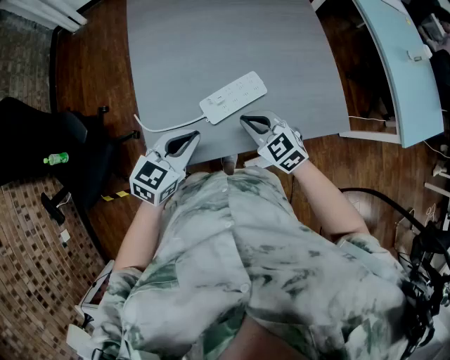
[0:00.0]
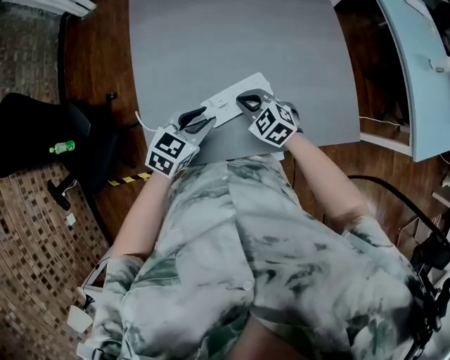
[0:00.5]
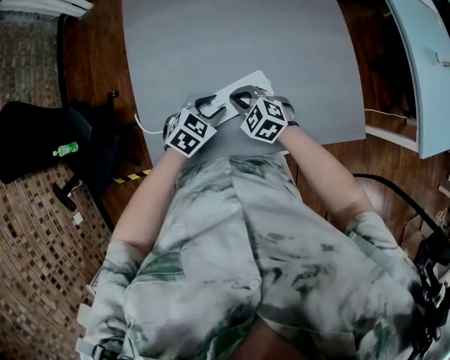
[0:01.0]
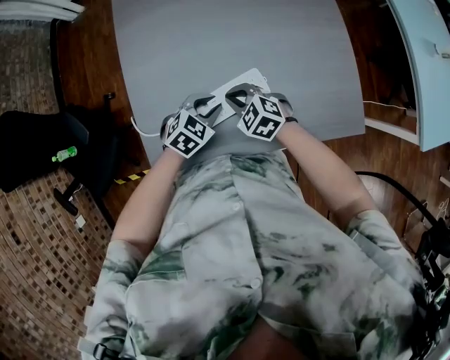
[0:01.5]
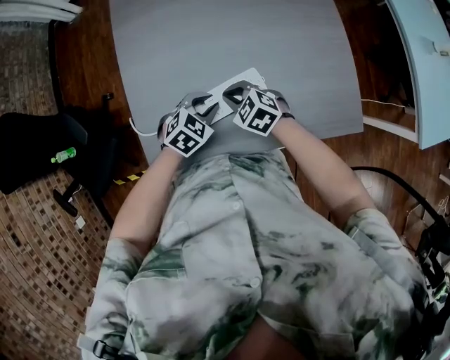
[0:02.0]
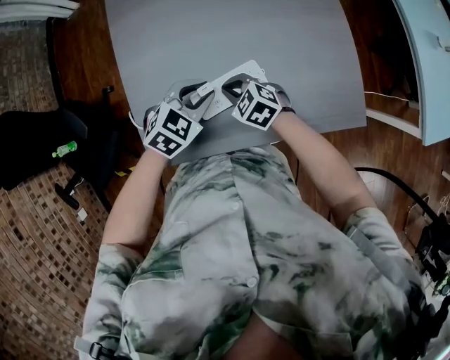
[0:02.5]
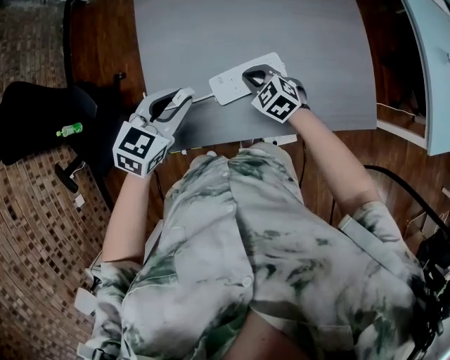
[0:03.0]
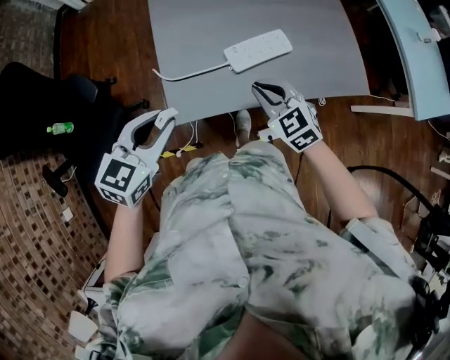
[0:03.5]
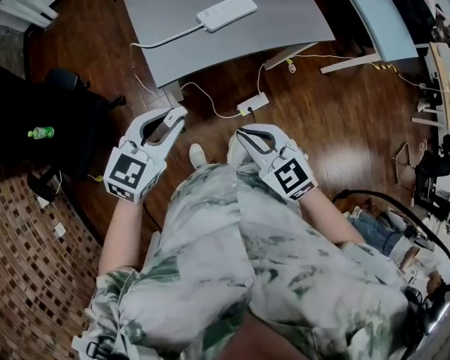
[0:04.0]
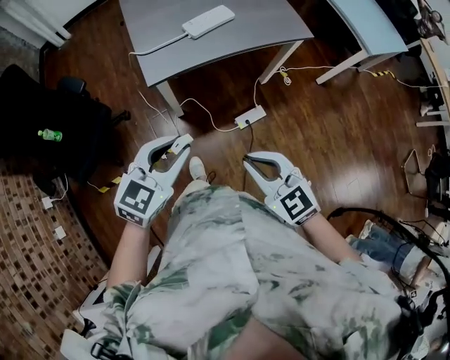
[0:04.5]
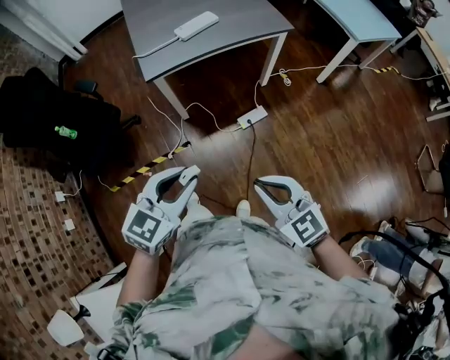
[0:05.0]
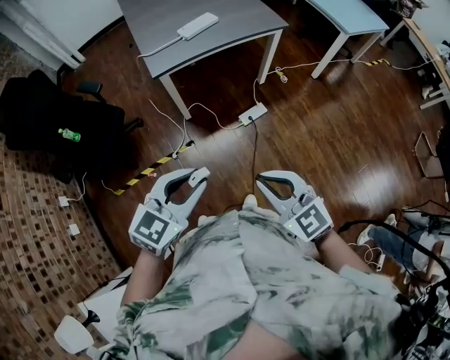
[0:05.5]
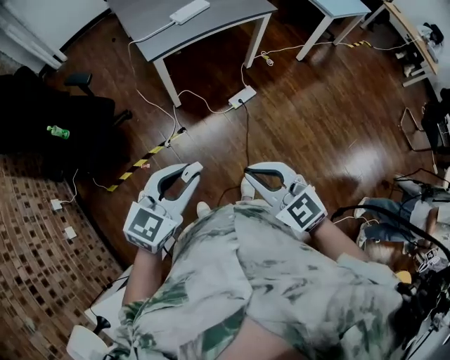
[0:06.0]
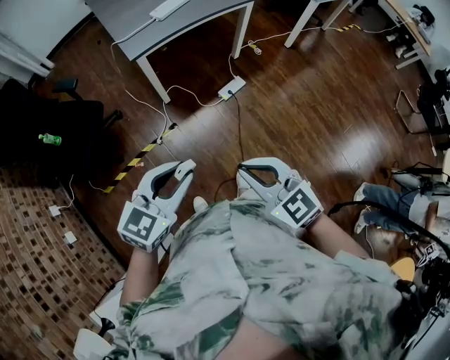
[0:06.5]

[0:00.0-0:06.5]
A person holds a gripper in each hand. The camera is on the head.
0:00.0 to 0:02.0: The left gripper is displaced downward, forward and to the right by approximately 20 cm, turns by some 30 degrees, and opens up, while the right gripper goes some 15 cm downward and forward.
0:02.0 to 0:04.5: The pair of grippers is taken backward, some 50 cm. The grippers both shift upward by roughly 25 cm. The right gripper turns by some 30 degrees. Meanwhile the left gripper angles its fingers upward, by some 30 degrees.
0:04.5 to 0:06.5: Both grippers move backward, some 25 cm.

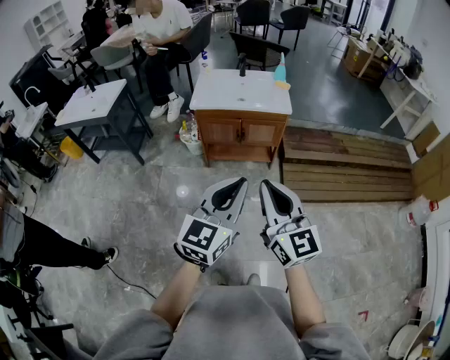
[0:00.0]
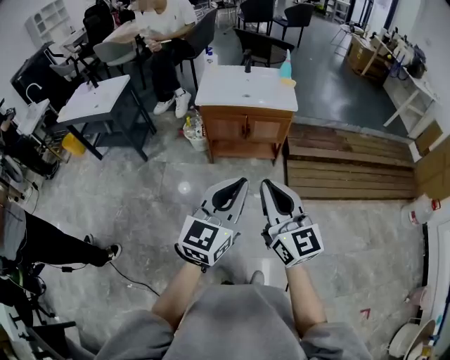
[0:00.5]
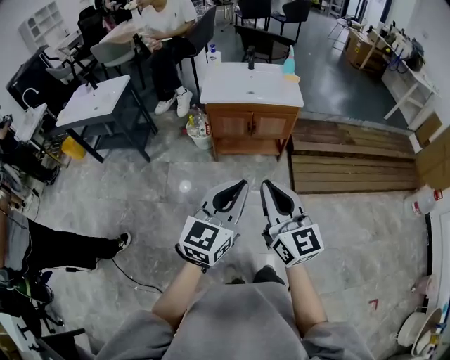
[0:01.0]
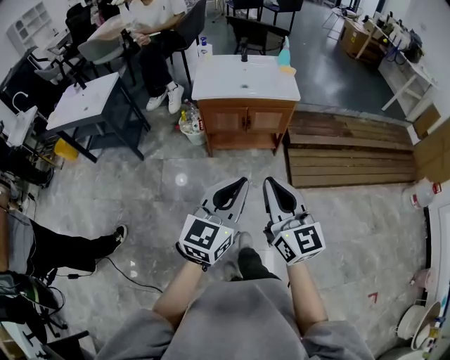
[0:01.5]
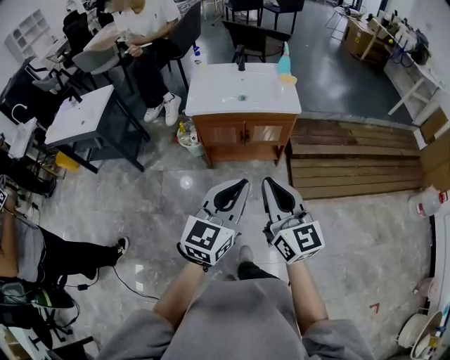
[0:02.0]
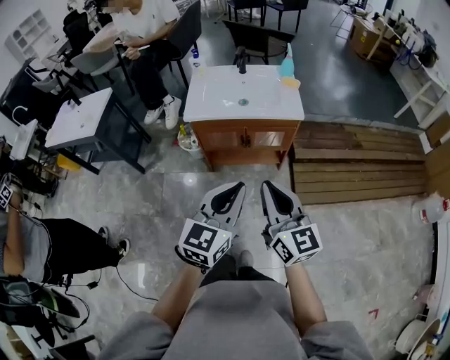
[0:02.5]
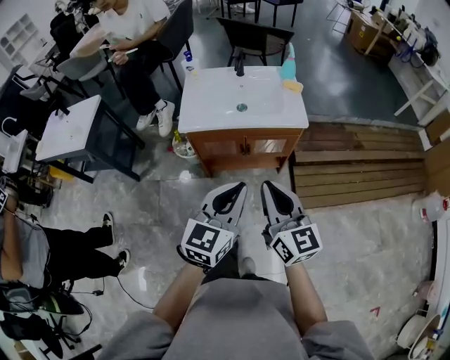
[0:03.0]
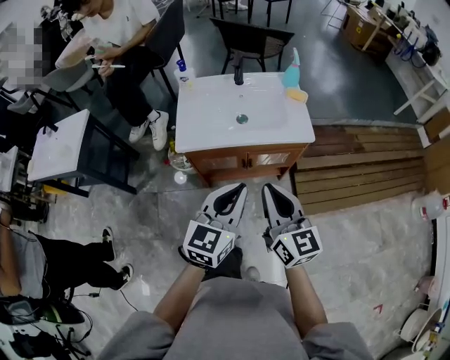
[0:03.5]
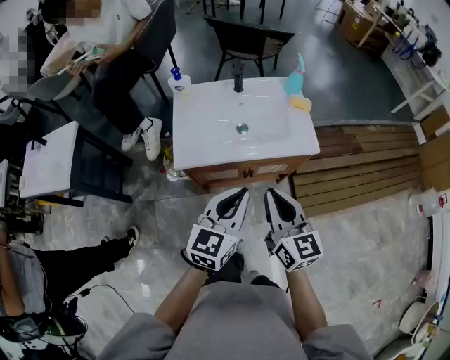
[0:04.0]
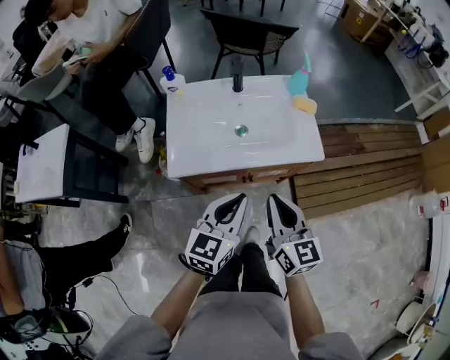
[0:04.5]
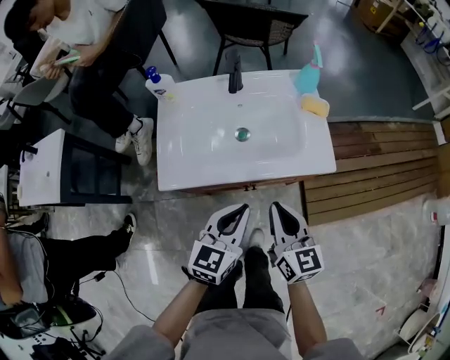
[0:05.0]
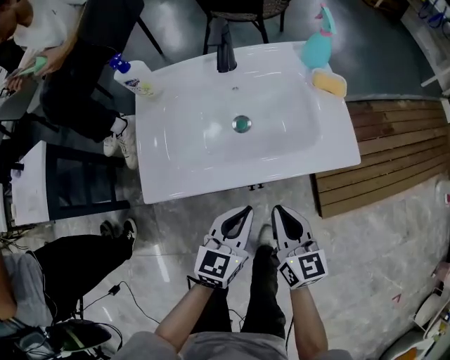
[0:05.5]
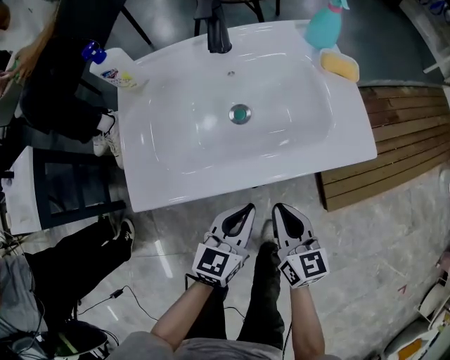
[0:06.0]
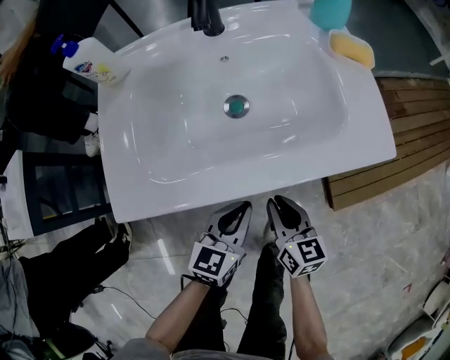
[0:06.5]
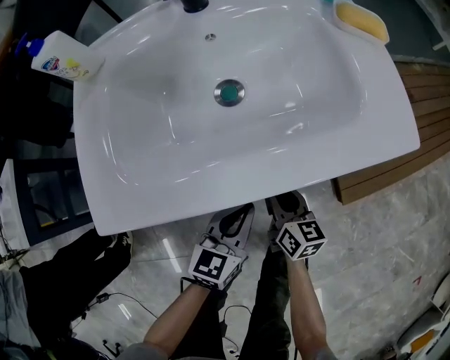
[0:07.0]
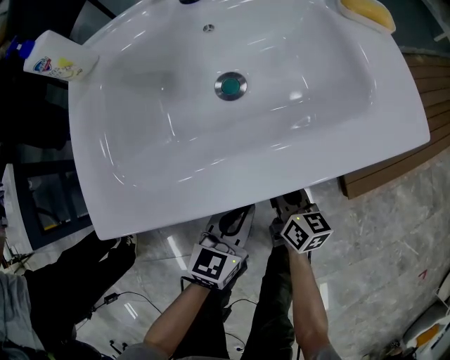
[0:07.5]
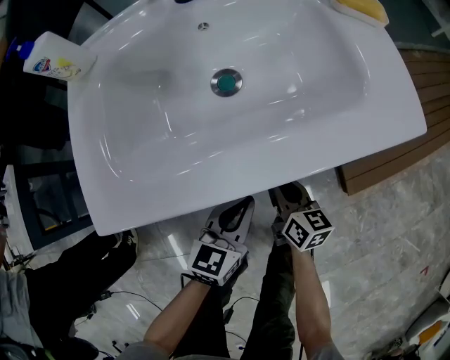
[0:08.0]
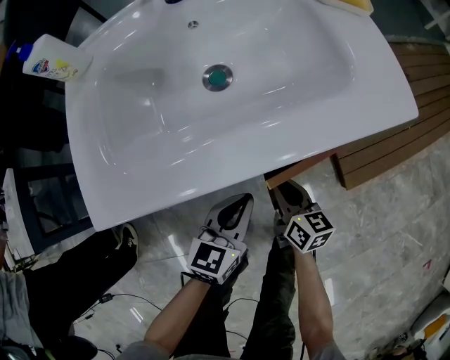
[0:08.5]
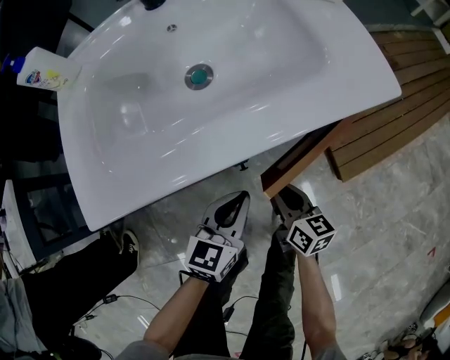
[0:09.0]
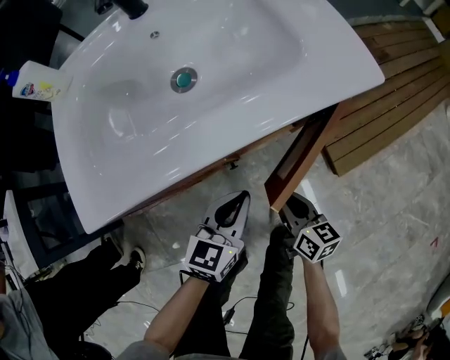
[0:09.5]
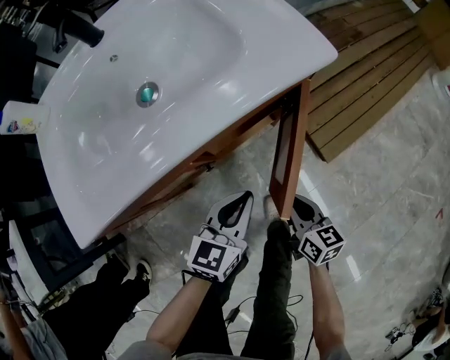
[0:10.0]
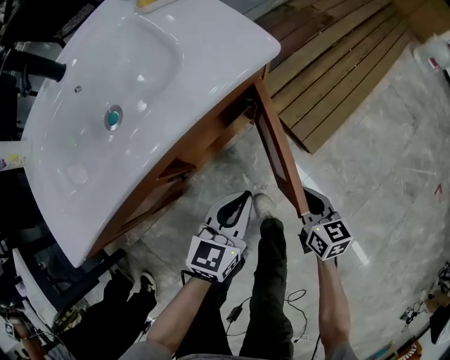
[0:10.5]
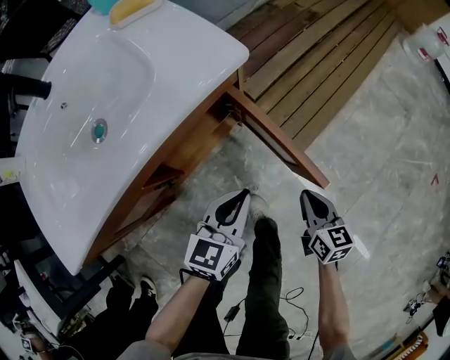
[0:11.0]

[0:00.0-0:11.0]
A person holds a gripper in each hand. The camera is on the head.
0:00.0 to 0:02.0: Both grippers move forward, about 15 cm.
0:02.0 to 0:03.5: The grippers both shift forward by approximately 25 cm.
0:03.5 to 0:05.5: Both grippers move downward and forward, some 35 cm.
0:05.5 to 0:07.5: The two grippers go approximately 25 cm downward. The right gripper changes its angle by about 20 degrees.
0:07.5 to 0:09.0: The right gripper goes roughly 5 cm backward.
0:09.0 to 0:11.0: The left gripper ends up roughly 20 cm from where it was, and swivels approximately 20 degrees. The right gripper shifts by about 30 cm, and turns by roughly 30 degrees.

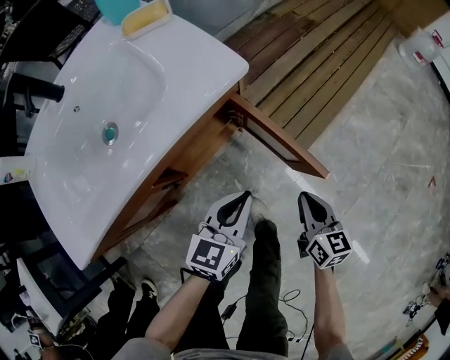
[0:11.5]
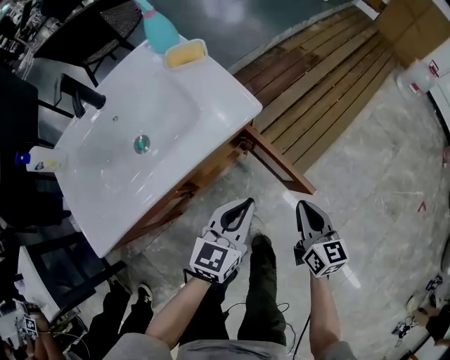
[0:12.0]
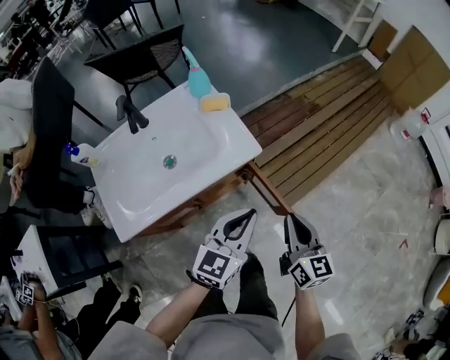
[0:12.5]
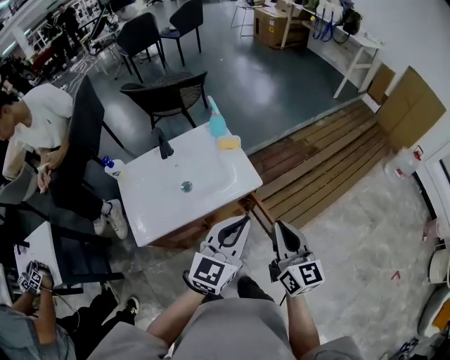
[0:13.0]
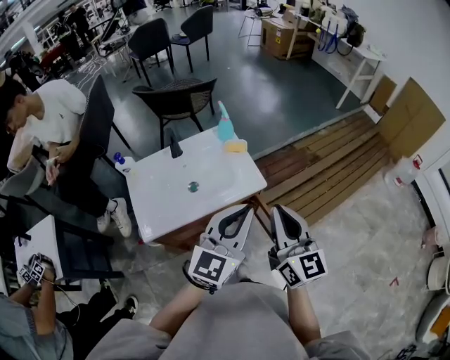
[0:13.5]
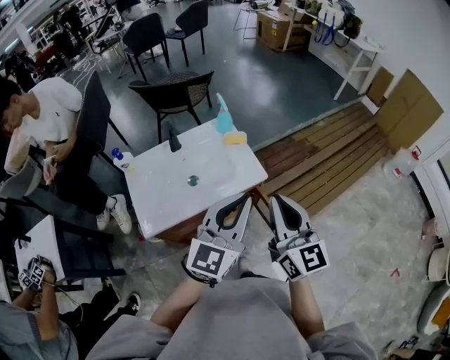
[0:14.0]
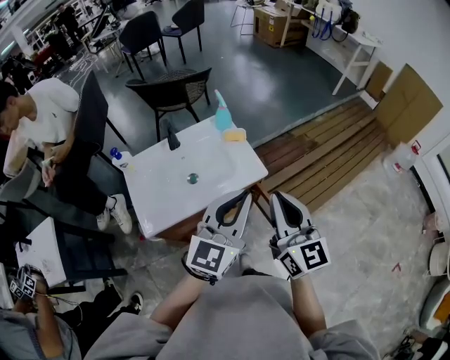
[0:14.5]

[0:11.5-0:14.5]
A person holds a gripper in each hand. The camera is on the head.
0:11.5 to 0:13.0: The grippers both shift upward by approximately 50 cm. The left gripper swivels about 30 degrees. Meanwhile the right gripper turns by roughly 30 degrees.
0:13.0 to 0:14.5: The left gripper goes approximately 10 cm upward, while the right gripper is displaced upward and to the left by roughly 10 cm.

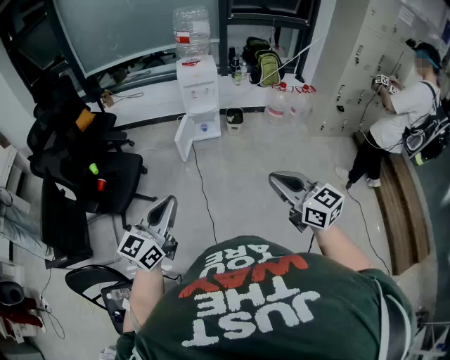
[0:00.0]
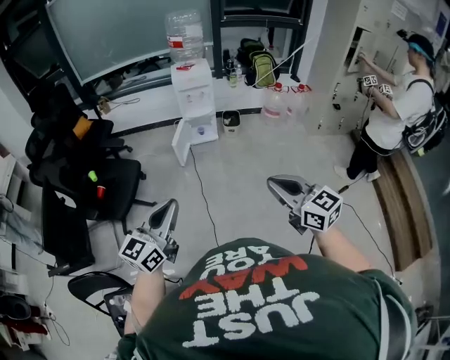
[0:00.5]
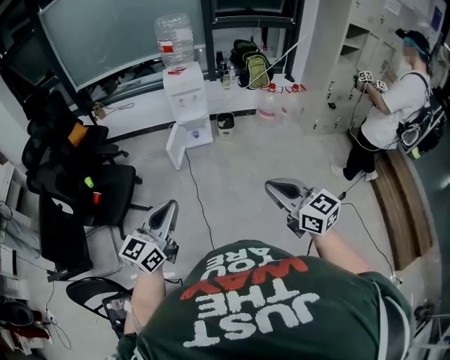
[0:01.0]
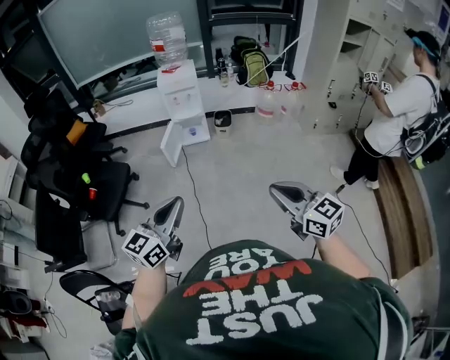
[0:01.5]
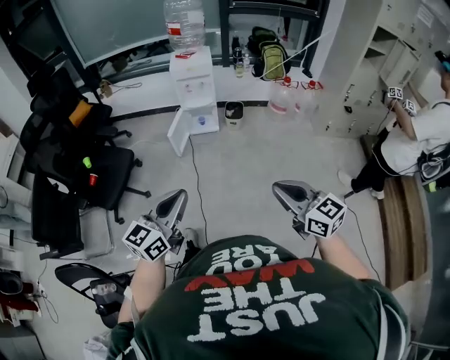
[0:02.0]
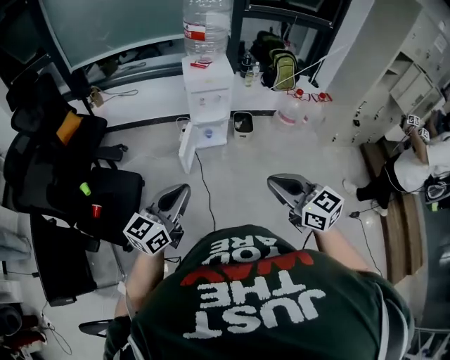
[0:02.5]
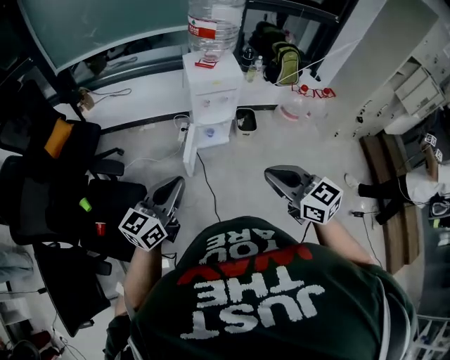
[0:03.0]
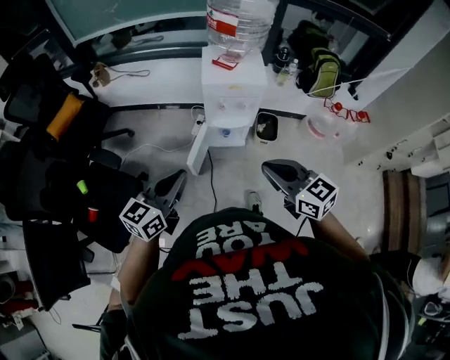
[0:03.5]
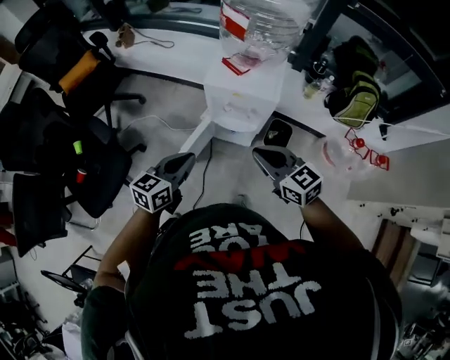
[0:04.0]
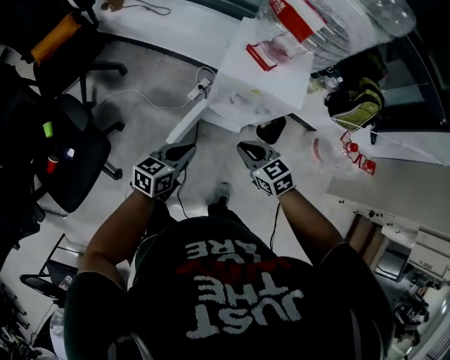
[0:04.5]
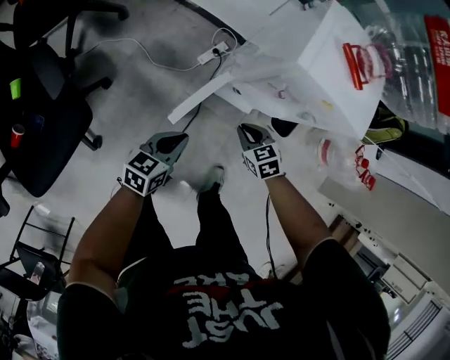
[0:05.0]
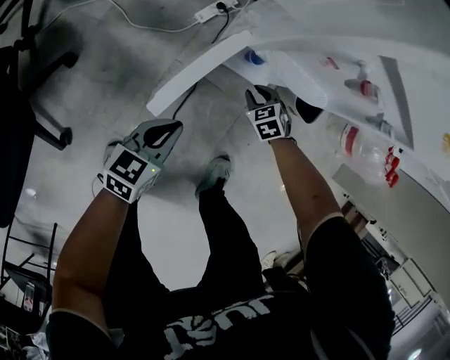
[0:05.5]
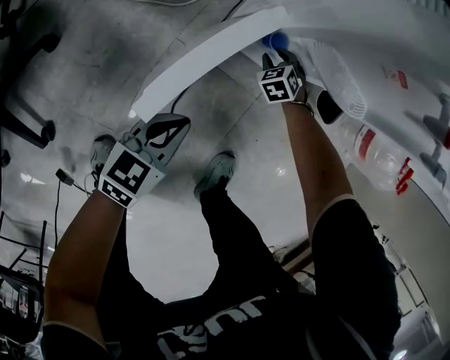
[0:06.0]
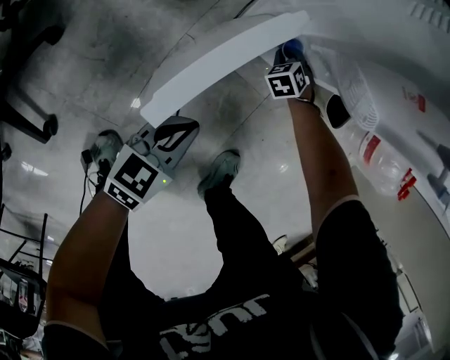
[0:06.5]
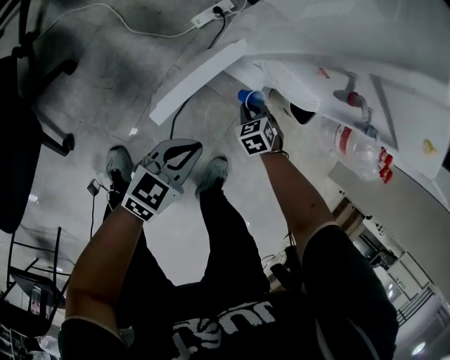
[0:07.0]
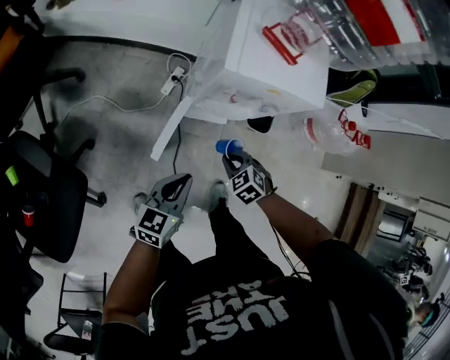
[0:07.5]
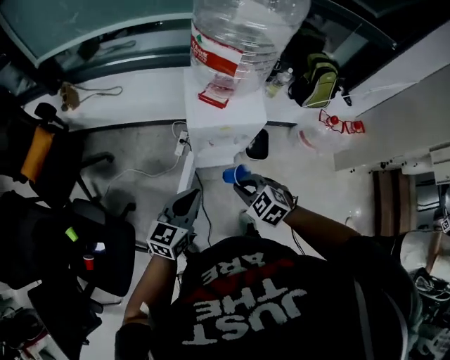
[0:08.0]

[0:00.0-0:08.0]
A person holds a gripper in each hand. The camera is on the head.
0:00.0 to 0:02.0: The grippers both shift to the right and forward by roughly 15 cm.
0:02.0 to 0:04.0: Both grippers are carried forward, roughly 70 cm. The right gripper turns by roughly 30 degrees, while the left gripper turns by about 20 degrees.
0:04.0 to 0:06.0: Both grippers travel together downward, about 70 cm. The right gripper points its fingers roughly 40 degrees further downward, and opens.
0:06.0 to 0:08.0: The two grippers go about 70 cm upward. The right gripper swivels about 30 degrees, and closes up.
